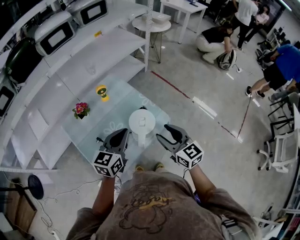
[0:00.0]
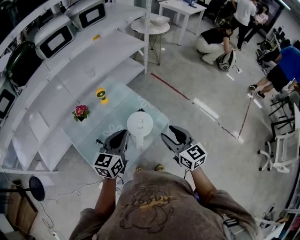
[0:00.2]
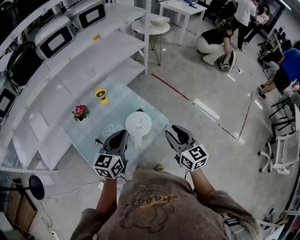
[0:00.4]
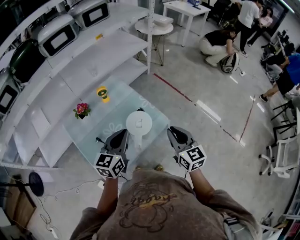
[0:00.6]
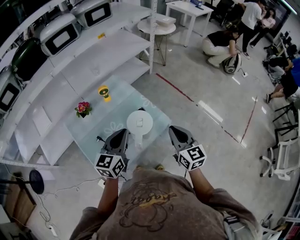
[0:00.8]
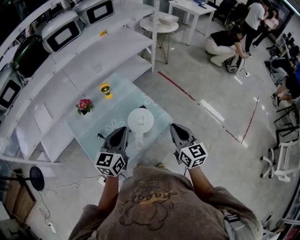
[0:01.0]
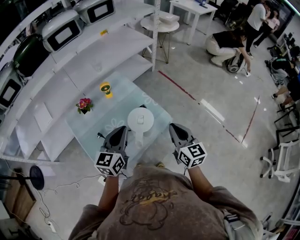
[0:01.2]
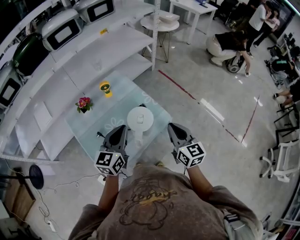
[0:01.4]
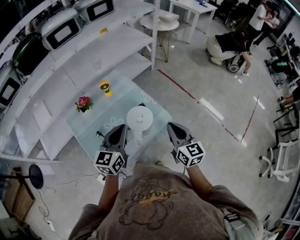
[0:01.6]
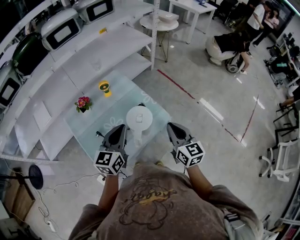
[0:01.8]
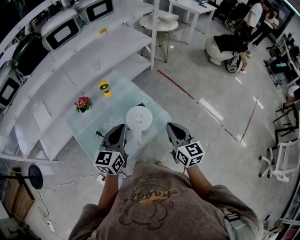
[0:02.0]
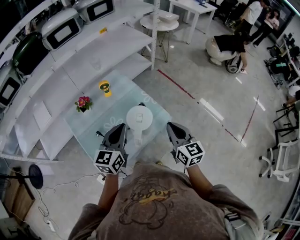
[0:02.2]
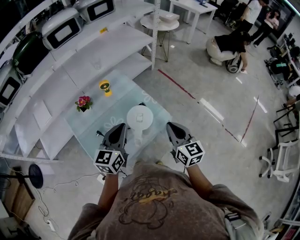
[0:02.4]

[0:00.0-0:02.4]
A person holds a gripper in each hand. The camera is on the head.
0:00.0 to 0:01.2: The right gripper goes approximately 5 cm to the right, and closes.
0:01.2 to 0:02.4: Both grippers stay about where they are.

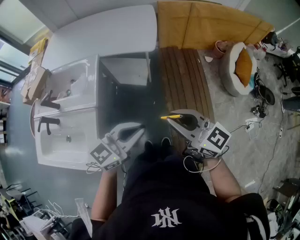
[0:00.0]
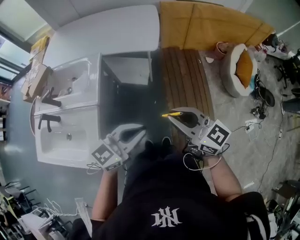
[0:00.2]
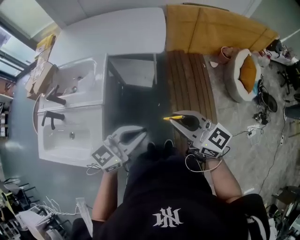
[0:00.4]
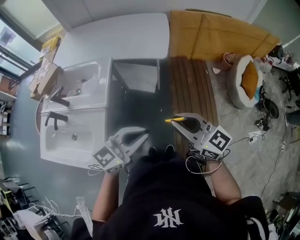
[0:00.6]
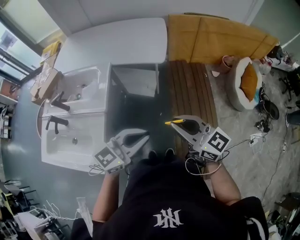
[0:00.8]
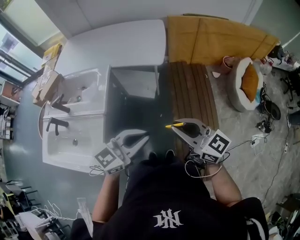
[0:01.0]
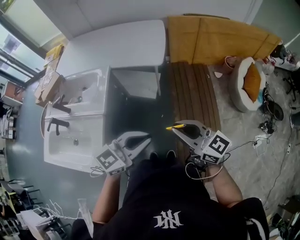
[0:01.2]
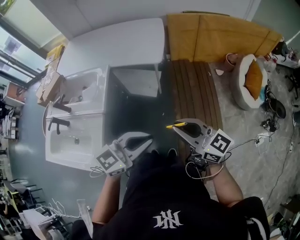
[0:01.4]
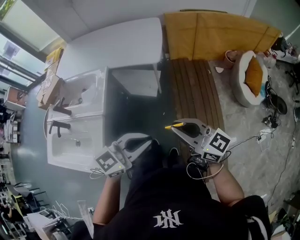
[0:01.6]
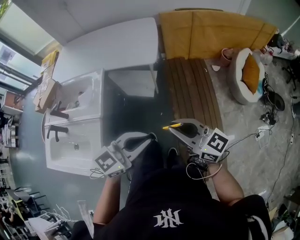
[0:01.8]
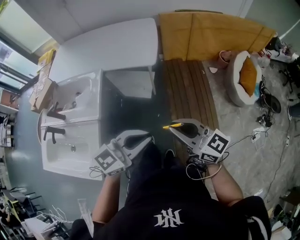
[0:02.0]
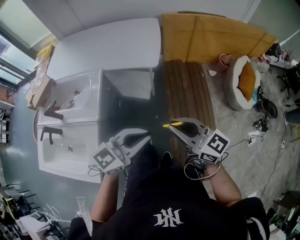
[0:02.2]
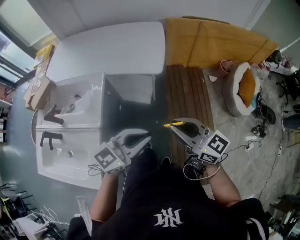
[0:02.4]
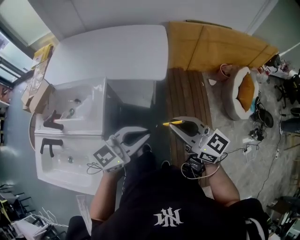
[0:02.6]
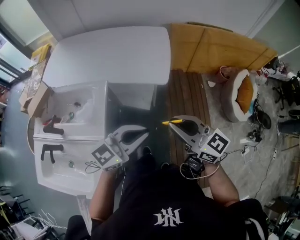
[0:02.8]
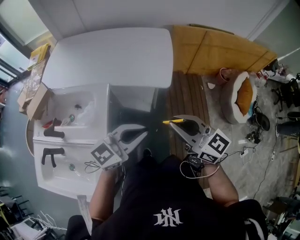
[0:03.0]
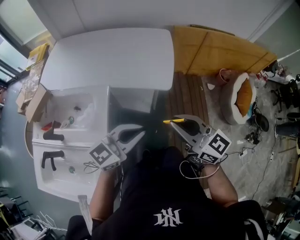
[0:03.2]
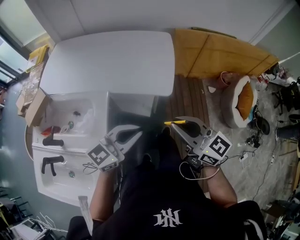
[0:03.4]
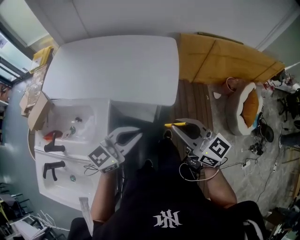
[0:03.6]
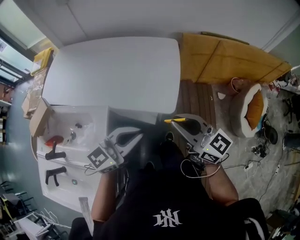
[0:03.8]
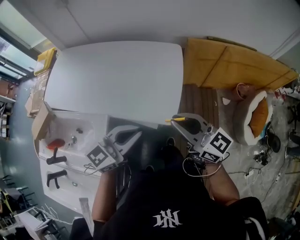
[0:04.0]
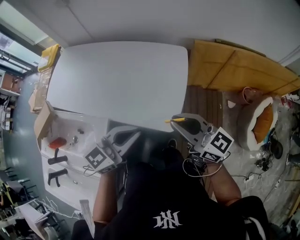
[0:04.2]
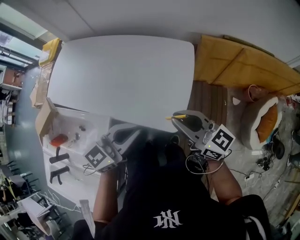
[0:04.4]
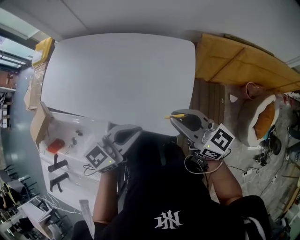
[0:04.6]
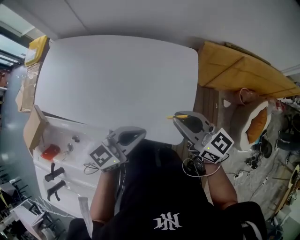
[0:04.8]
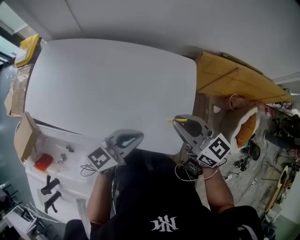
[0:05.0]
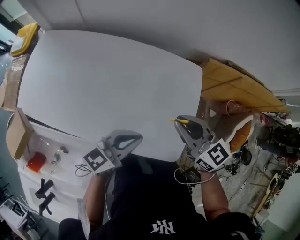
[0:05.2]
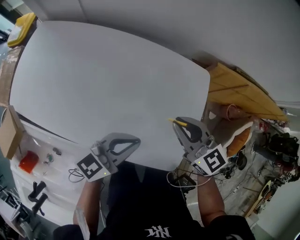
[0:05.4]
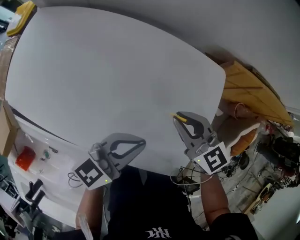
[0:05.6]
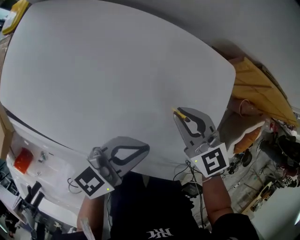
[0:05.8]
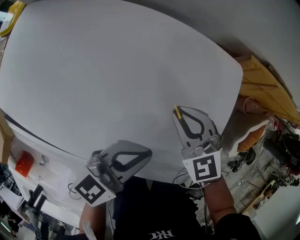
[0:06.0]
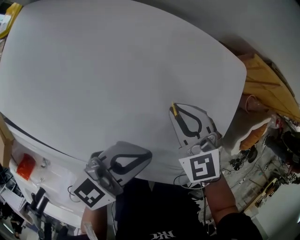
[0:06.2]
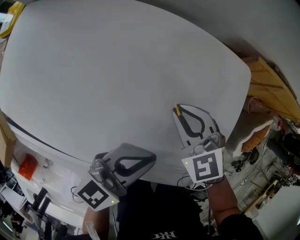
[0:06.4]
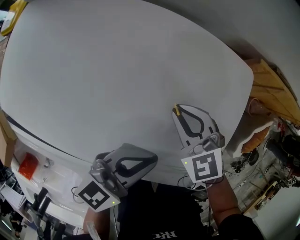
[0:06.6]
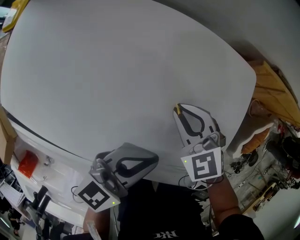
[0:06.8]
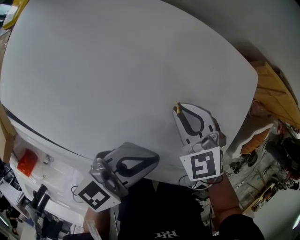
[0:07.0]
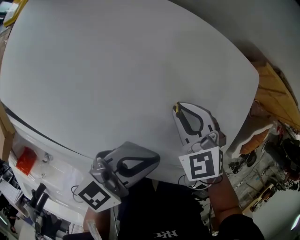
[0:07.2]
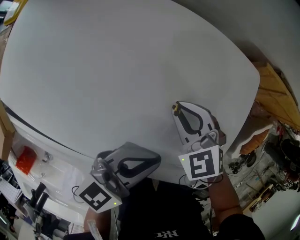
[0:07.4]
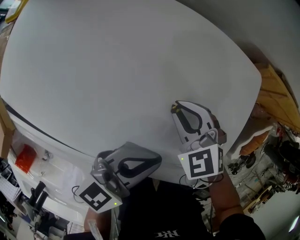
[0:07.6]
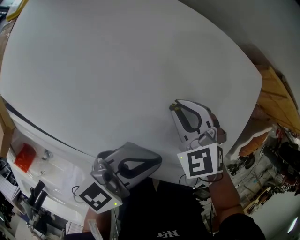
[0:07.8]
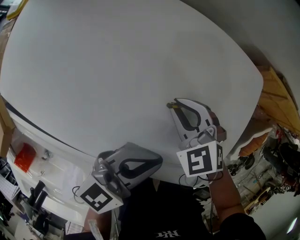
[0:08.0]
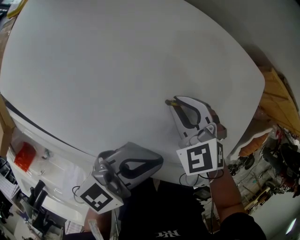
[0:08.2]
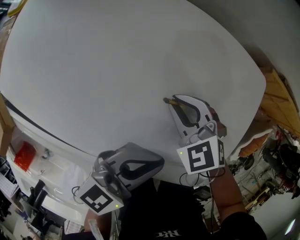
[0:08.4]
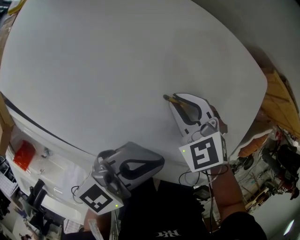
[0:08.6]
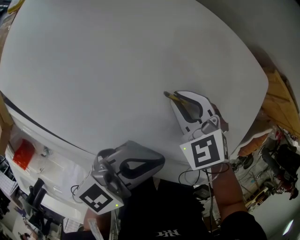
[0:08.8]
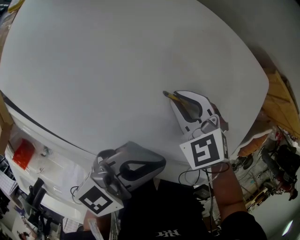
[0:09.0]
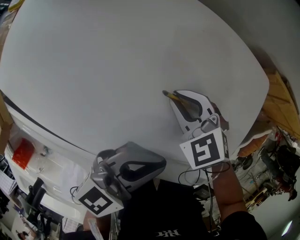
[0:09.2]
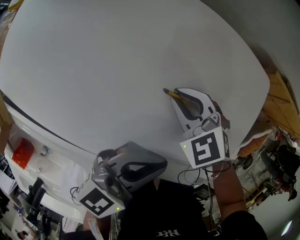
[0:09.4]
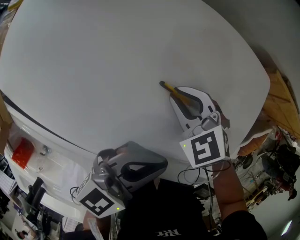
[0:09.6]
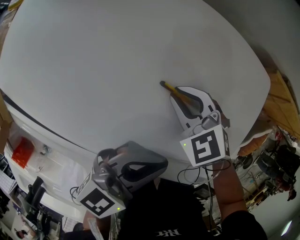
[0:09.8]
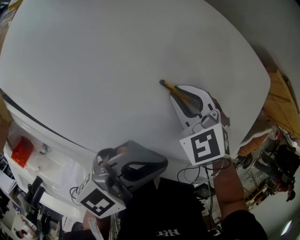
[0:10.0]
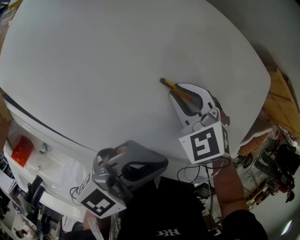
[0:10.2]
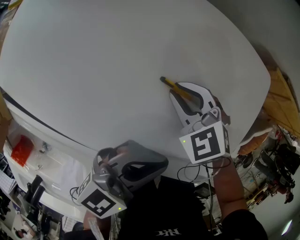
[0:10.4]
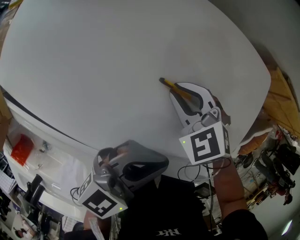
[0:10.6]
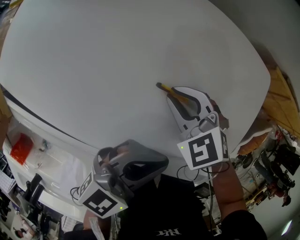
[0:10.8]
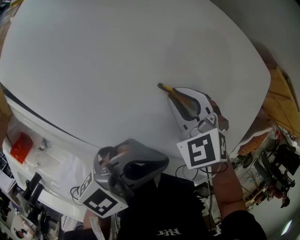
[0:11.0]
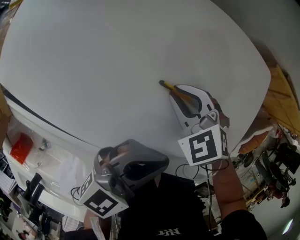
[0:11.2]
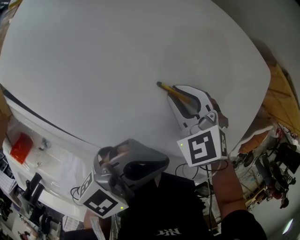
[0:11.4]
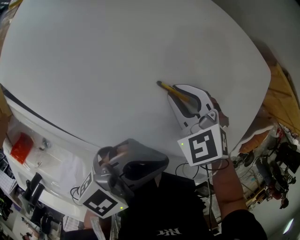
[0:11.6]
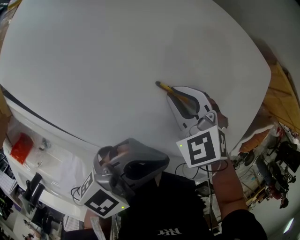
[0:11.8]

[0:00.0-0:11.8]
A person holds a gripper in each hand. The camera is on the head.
0:00.0 to 0:01.4: The two grippers go about 5 cm to the right.
0:01.4 to 0:03.0: Both grippers travel together forward and to the left, some 25 cm.
0:03.0 to 0:04.4: The grippers both shift forward by roughly 35 cm.
0:04.4 to 0:06.0: The right gripper is displaced forward, downward and to the left by some 40 cm, and tilts its fingers about 40 degrees downward, while the left gripper shifts about 30 cm forward and downward.
0:06.0 to 0:07.4: The right gripper travels to the left by about 5 cm.
0:07.4 to 0:08.8: The right gripper shifts by approximately 5 cm.
0:08.8 to 0:11.8: The grippers make only small movements.

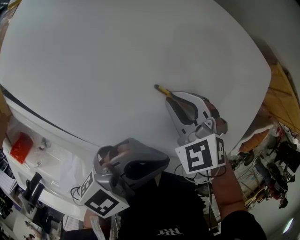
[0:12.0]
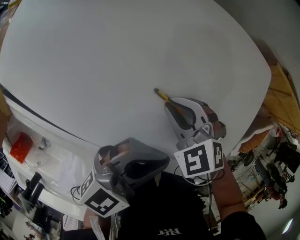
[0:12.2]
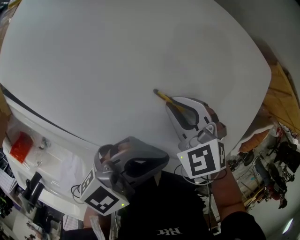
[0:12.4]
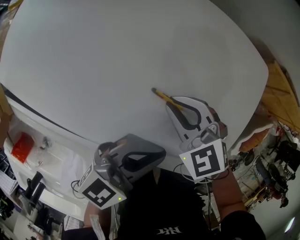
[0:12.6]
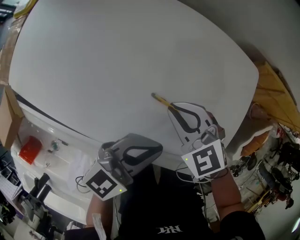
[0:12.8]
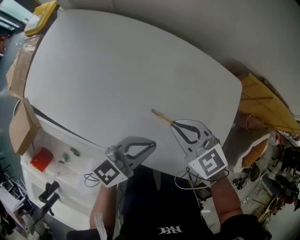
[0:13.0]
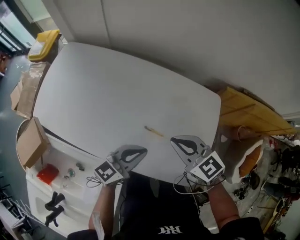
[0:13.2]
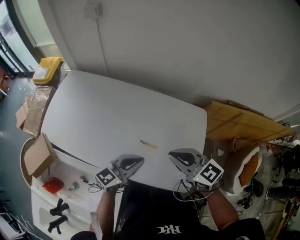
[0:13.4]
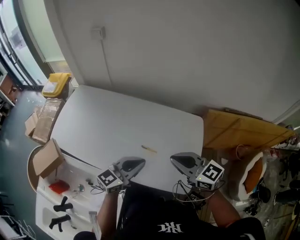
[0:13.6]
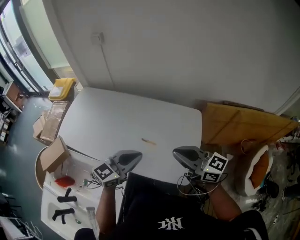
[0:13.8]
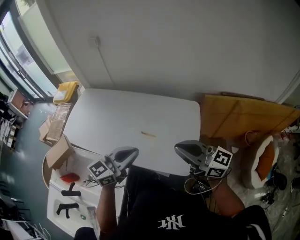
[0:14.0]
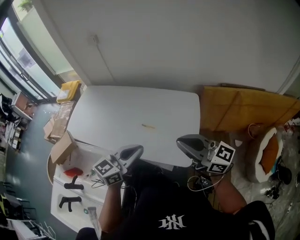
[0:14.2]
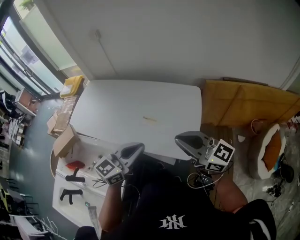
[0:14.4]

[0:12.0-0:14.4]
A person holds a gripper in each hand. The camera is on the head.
0:12.0 to 0:13.2: The left gripper goes about 5 cm upward. Meanwhile the right gripper heads upward, covering about 25 cm, and rotates roughly 30 degrees.
0:13.2 to 0:14.4: The two grippers go approximately 35 cm backward, upward and to the right. The right gripper angles its fingers upward, by approximately 40 degrees.

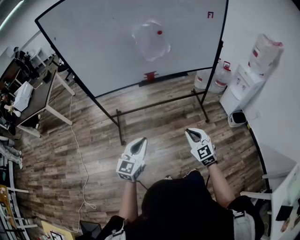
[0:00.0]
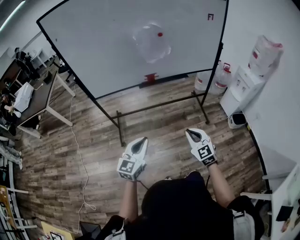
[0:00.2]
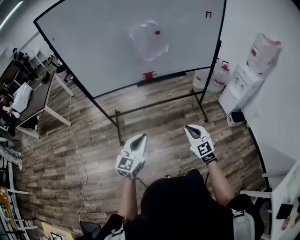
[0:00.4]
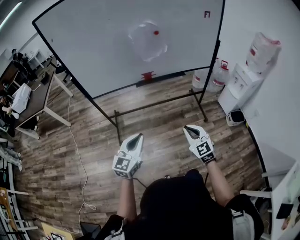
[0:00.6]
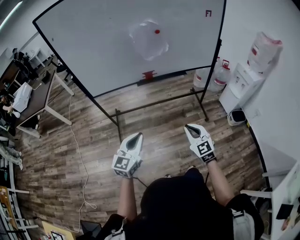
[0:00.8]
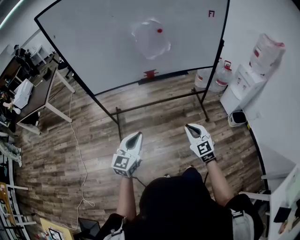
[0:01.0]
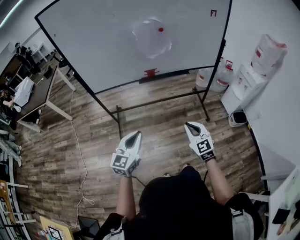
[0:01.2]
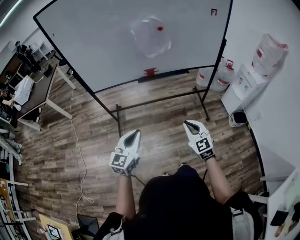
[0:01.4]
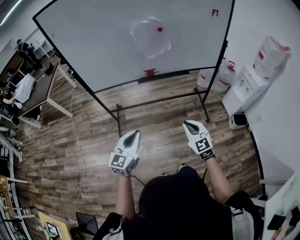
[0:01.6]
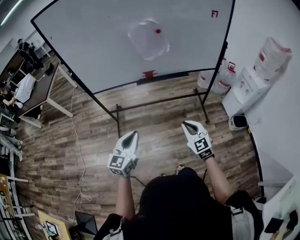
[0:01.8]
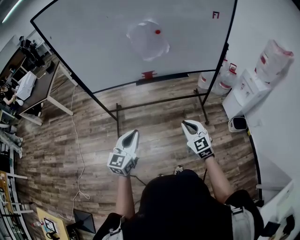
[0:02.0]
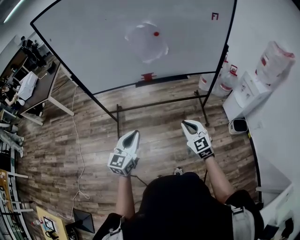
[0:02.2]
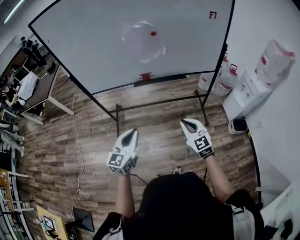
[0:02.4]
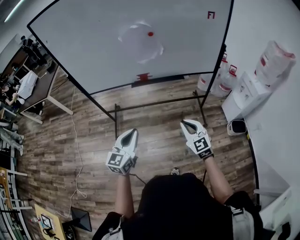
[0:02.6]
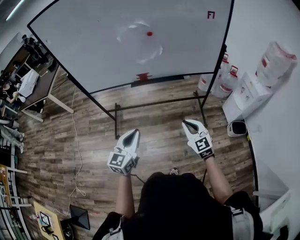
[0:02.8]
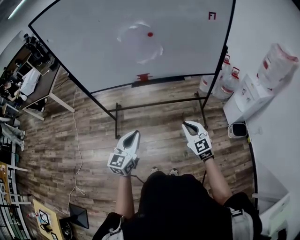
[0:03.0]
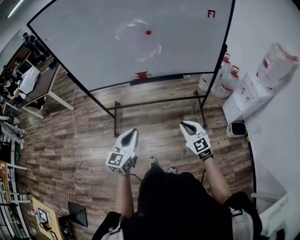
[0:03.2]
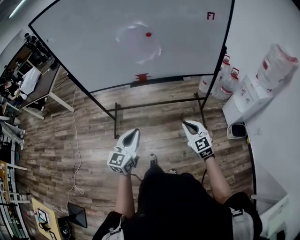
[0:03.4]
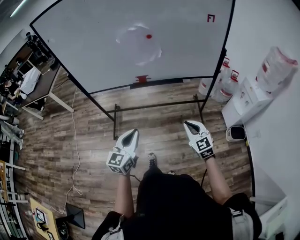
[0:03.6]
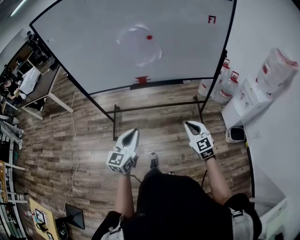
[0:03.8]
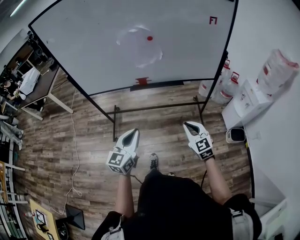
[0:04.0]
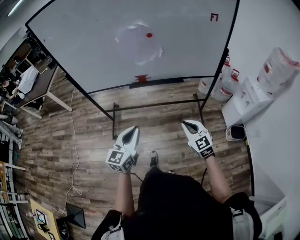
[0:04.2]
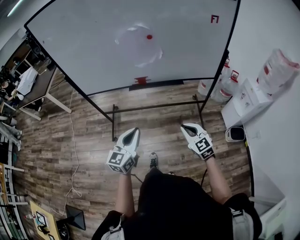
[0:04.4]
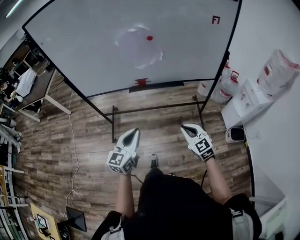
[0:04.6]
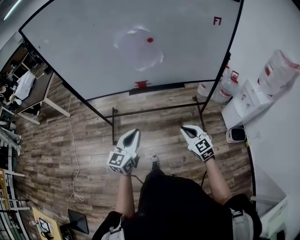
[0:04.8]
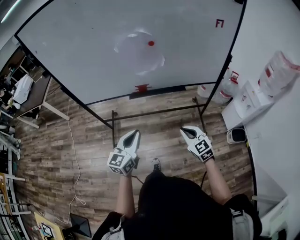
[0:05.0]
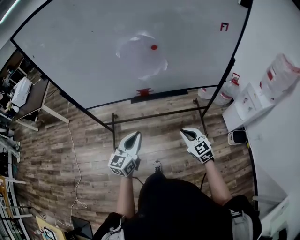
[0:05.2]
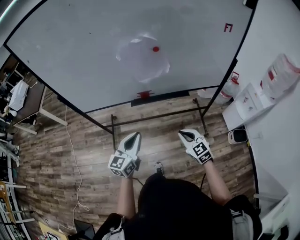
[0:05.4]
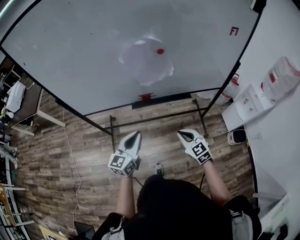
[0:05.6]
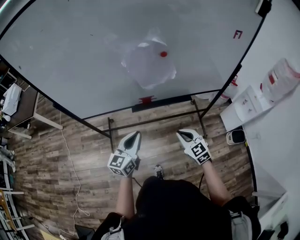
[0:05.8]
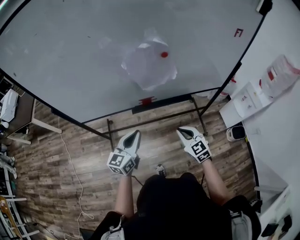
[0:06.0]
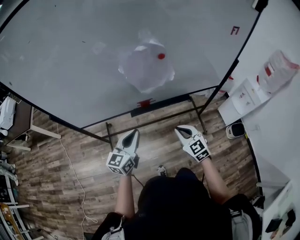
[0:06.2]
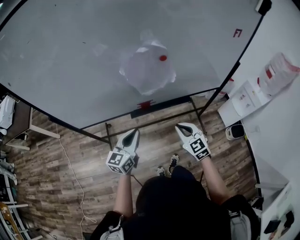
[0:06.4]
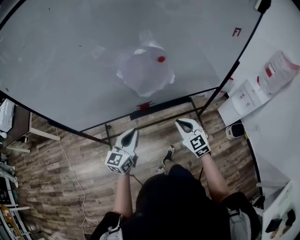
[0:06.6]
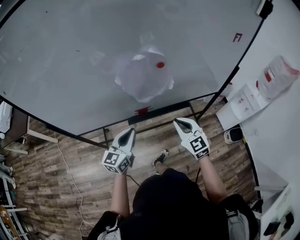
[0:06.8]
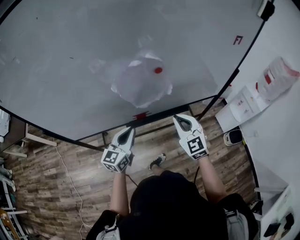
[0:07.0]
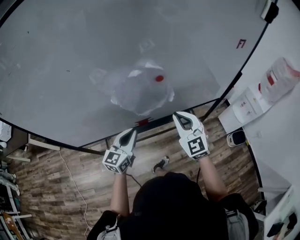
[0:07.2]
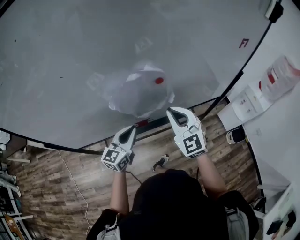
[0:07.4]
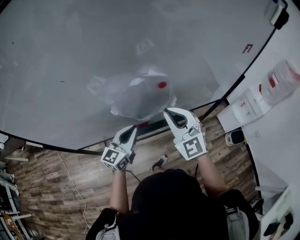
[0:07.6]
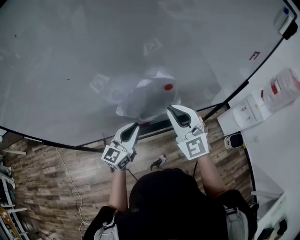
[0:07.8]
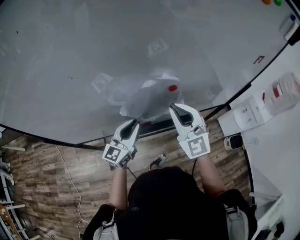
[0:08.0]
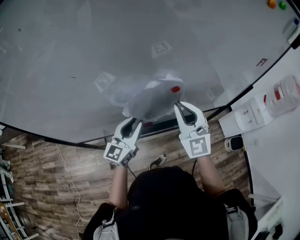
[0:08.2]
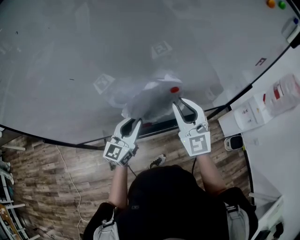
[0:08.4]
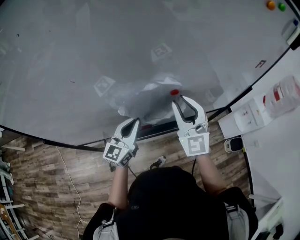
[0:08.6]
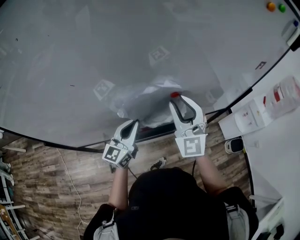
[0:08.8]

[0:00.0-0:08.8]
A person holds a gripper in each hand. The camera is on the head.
0:00.0 to 0:01.4: There are only small adjustments of the grippers.
0:01.4 to 0:03.0: The left gripper heads to the right, covering approximately 15 cm. The right gripper is displaced to the right and forward by approximately 15 cm.
0:03.0 to 0:04.4: The left gripper moves forward, some 5 cm.
0:04.4 to 0:05.8: The left gripper moves forward, about 25 cm. Meanwhile the right gripper goes some 20 cm forward and to the left.
0:05.8 to 0:07.4: The right gripper moves forward and upward, about 25 cm, and turns by about 30 degrees. The left gripper is displaced forward by some 20 cm.
0:07.4 to 0:08.8: The left gripper shifts roughly 5 cm forward; the right gripper shifts roughly 10 cm upward and forward, and opens up.
